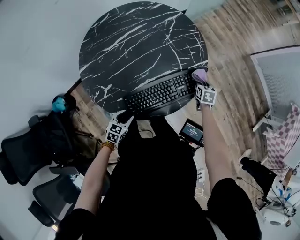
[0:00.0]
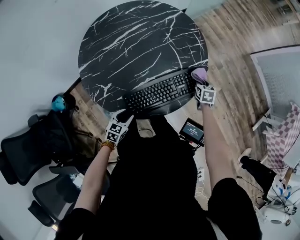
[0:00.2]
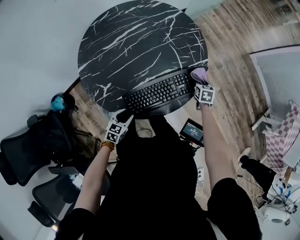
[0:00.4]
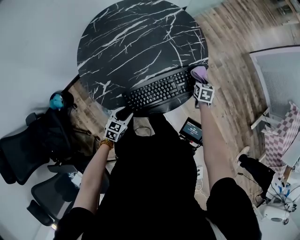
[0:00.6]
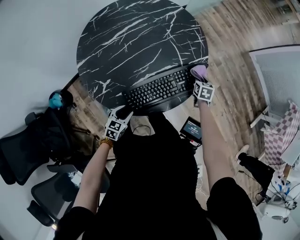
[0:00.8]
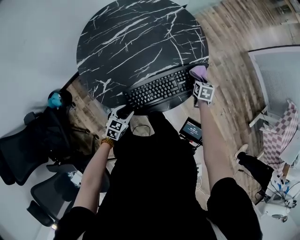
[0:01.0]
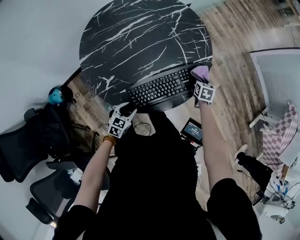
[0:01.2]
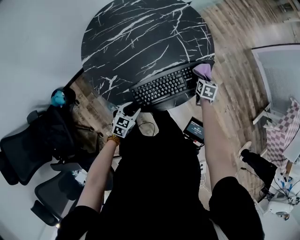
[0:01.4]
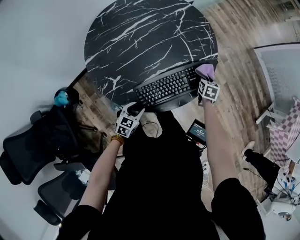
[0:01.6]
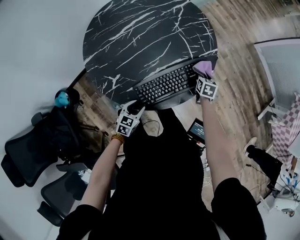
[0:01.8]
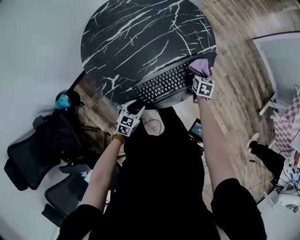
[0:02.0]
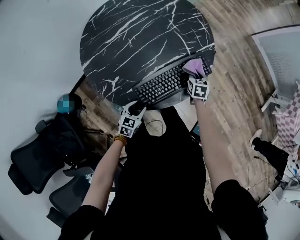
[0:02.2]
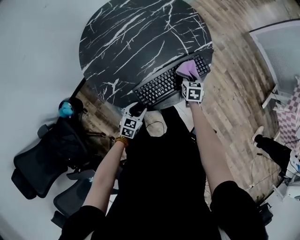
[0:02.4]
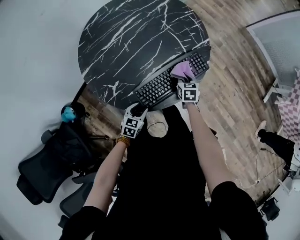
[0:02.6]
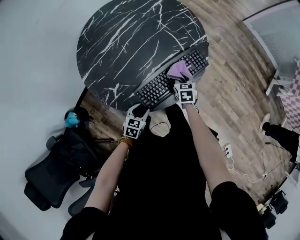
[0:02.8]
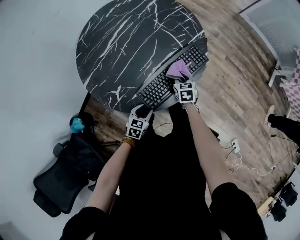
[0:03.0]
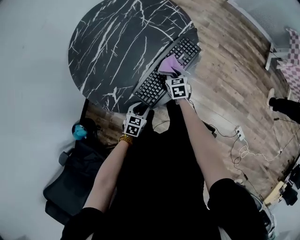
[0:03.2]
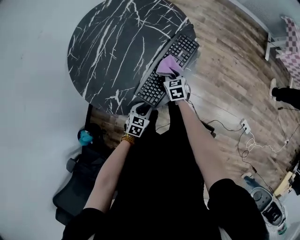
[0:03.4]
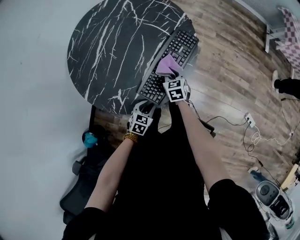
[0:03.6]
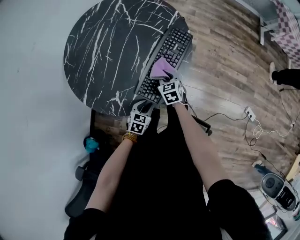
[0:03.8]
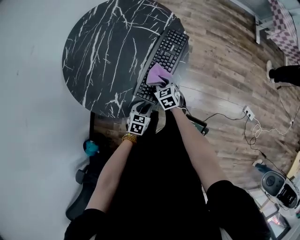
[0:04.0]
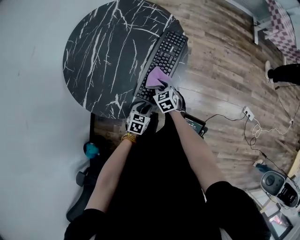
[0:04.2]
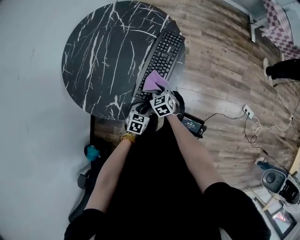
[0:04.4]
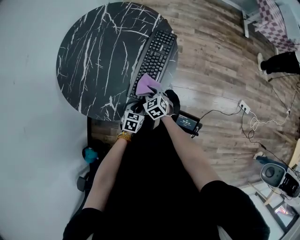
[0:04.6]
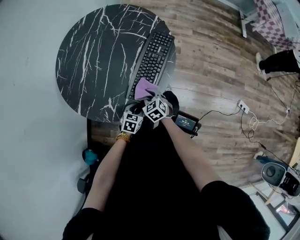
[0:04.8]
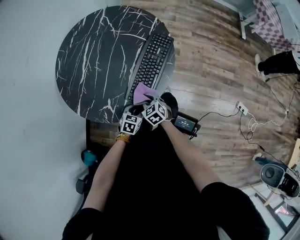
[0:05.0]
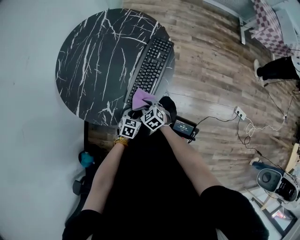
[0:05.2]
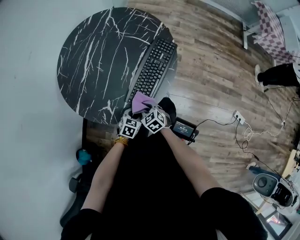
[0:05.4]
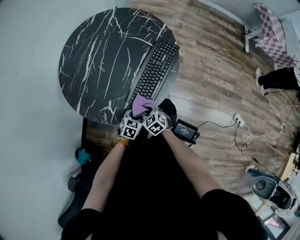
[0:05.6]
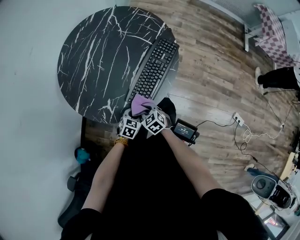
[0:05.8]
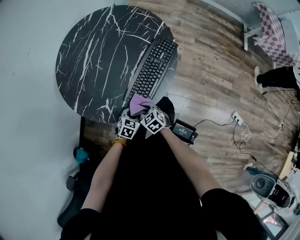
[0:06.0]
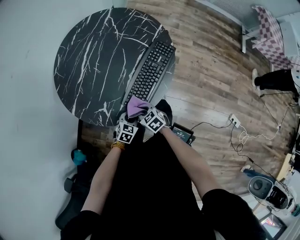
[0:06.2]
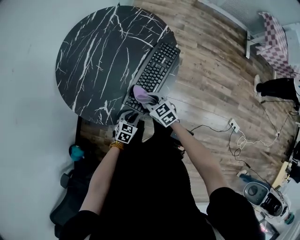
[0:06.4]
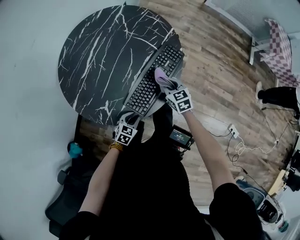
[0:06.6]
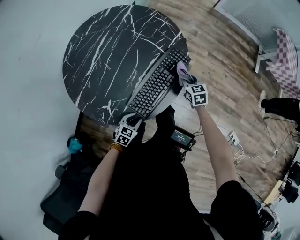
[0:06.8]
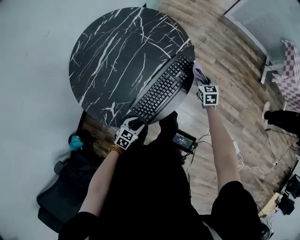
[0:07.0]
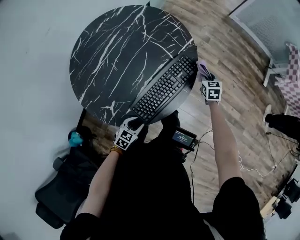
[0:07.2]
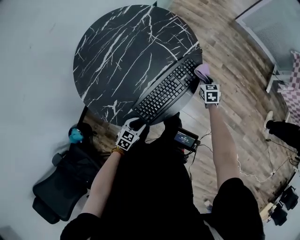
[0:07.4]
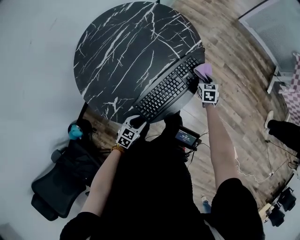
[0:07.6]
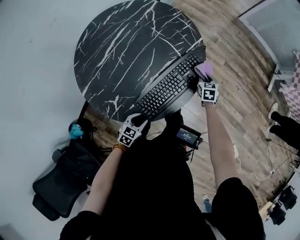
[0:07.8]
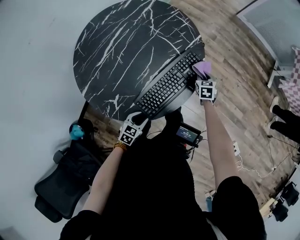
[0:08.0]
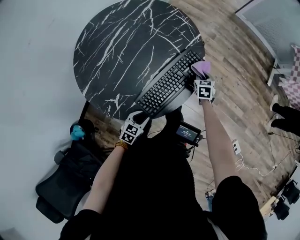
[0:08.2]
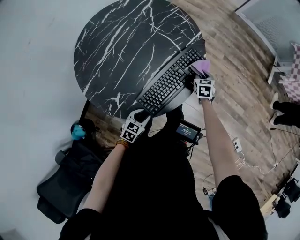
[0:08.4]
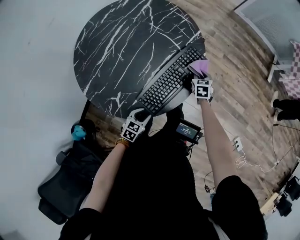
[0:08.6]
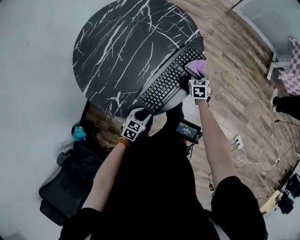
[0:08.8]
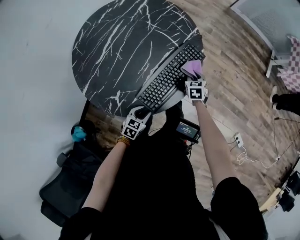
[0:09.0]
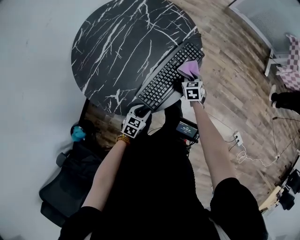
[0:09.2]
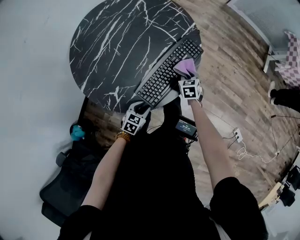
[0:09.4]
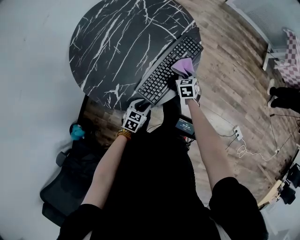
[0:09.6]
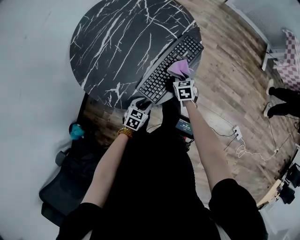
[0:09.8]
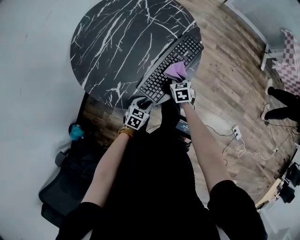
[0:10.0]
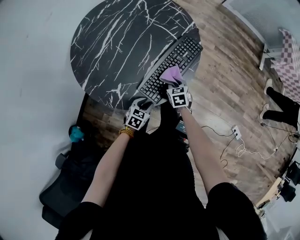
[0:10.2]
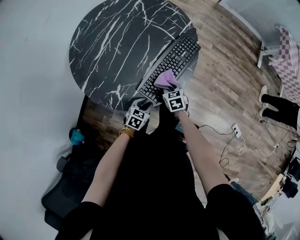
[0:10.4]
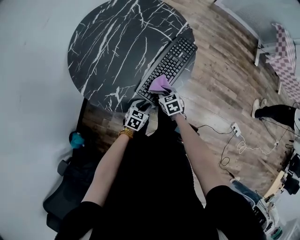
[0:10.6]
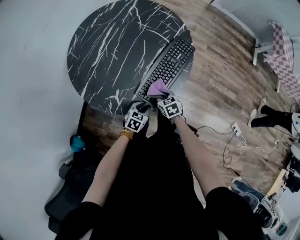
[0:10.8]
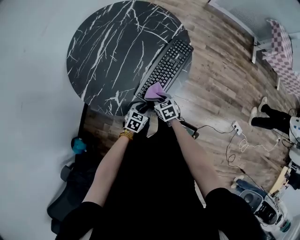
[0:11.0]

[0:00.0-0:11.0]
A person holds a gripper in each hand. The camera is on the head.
0.0 to 1.6 s: There are only small adjustments of the grippers.
1.6 to 3.2 s: The right gripper shifts roughly 20 cm backward and to the left; the left gripper rotates about 20 degrees.
3.2 to 4.8 s: The right gripper shifts about 15 cm backward.
4.8 to 6.2 s: The right gripper is displaced backward by roughly 5 cm, and turns by about 20 degrees.
6.2 to 7.8 s: The right gripper moves forward and to the right, roughly 40 cm, and turns by some 30 degrees.
7.8 to 9.4 s: The right gripper shifts approximately 15 cm backward and to the left.
9.4 to 11.0 s: The right gripper is displaced backward and to the left by approximately 20 cm.

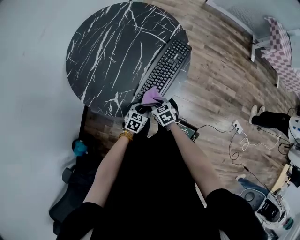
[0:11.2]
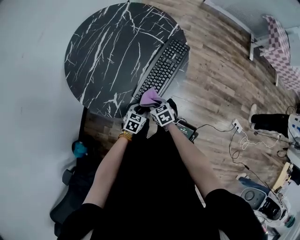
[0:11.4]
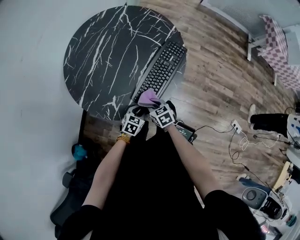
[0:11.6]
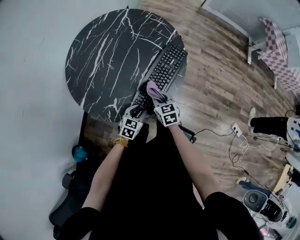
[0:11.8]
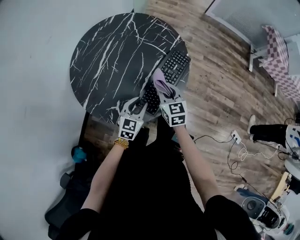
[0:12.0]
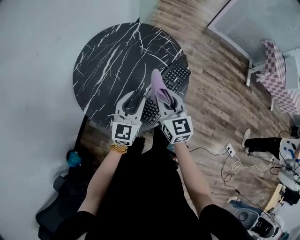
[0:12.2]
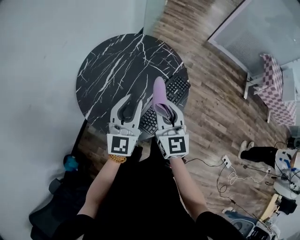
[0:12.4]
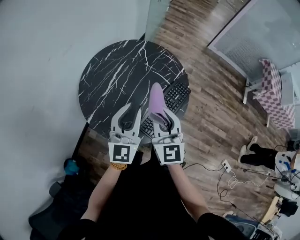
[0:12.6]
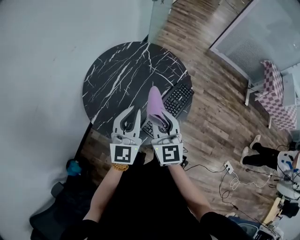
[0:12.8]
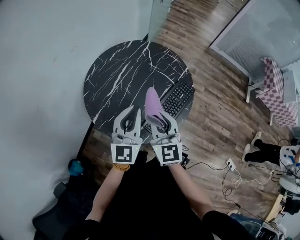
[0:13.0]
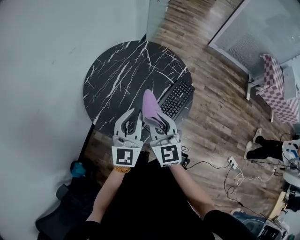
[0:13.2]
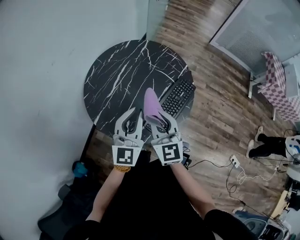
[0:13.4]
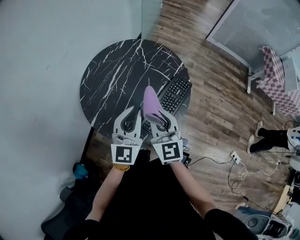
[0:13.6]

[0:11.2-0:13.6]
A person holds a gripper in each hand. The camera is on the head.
11.2 to 12.4 s: Both grippers travel together upward, roughly 40 cm. The right gripper points its fingers roughly 50 degrees further upward. Meanwhile the left gripper tips its fingers upward by about 50 degrees.

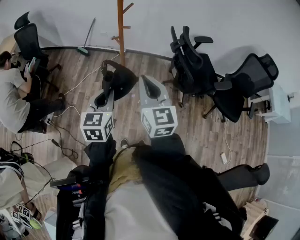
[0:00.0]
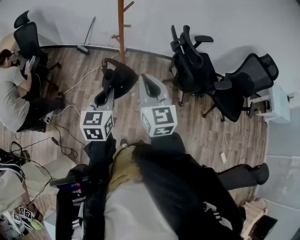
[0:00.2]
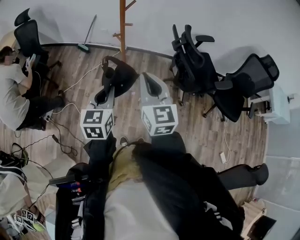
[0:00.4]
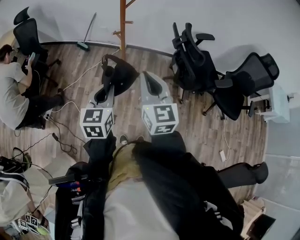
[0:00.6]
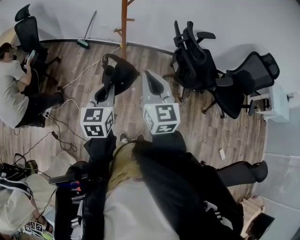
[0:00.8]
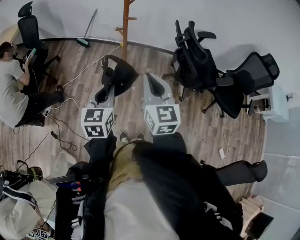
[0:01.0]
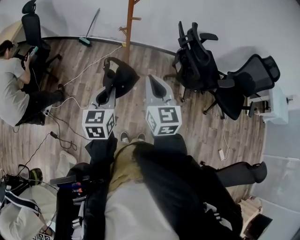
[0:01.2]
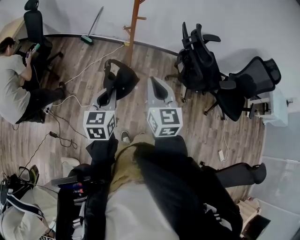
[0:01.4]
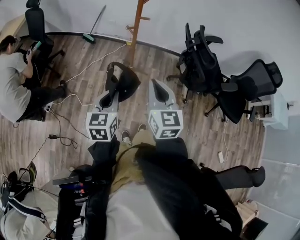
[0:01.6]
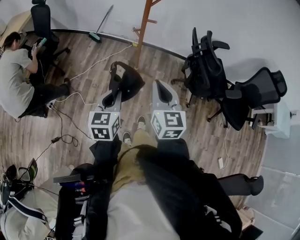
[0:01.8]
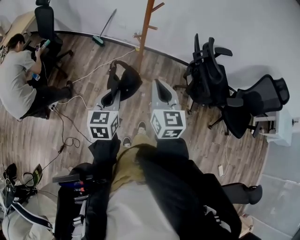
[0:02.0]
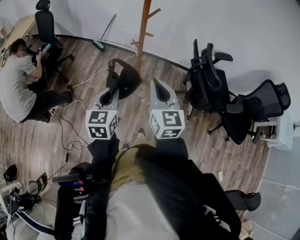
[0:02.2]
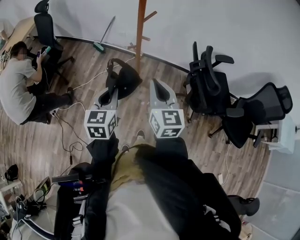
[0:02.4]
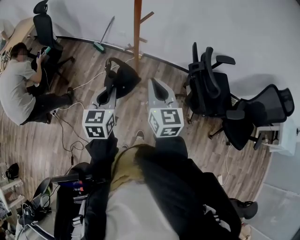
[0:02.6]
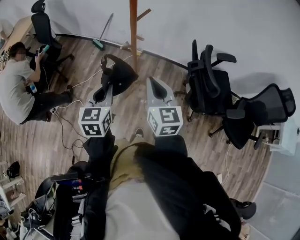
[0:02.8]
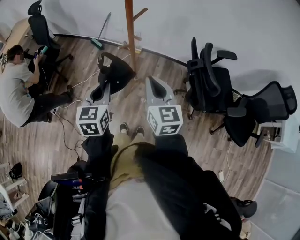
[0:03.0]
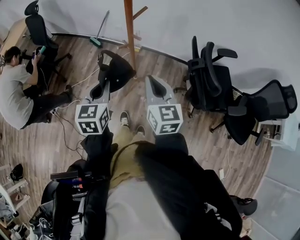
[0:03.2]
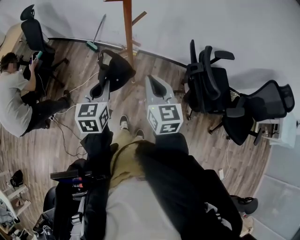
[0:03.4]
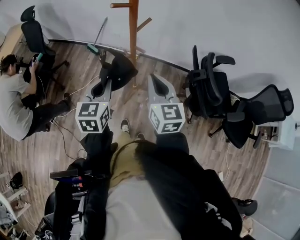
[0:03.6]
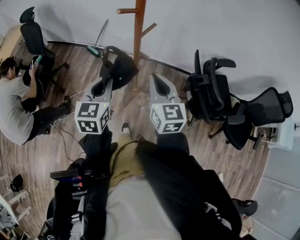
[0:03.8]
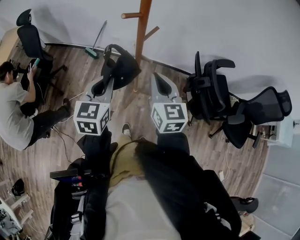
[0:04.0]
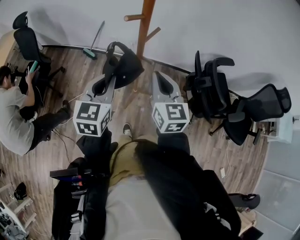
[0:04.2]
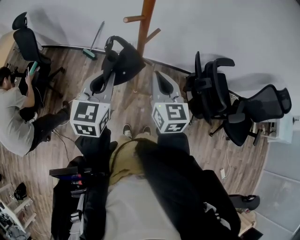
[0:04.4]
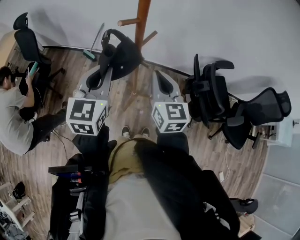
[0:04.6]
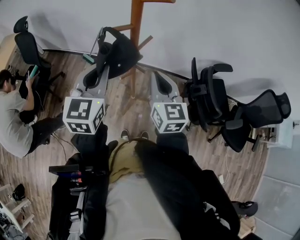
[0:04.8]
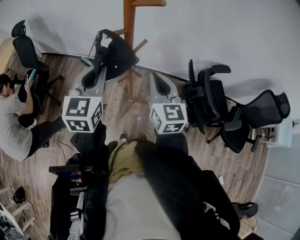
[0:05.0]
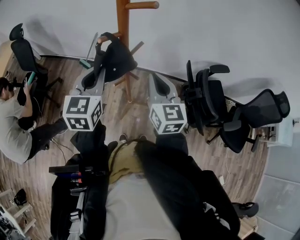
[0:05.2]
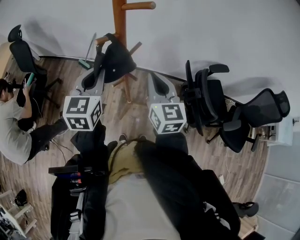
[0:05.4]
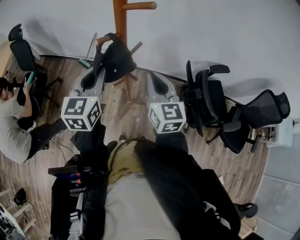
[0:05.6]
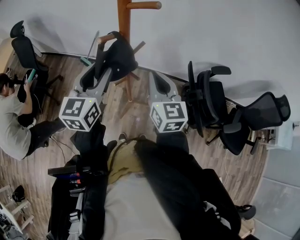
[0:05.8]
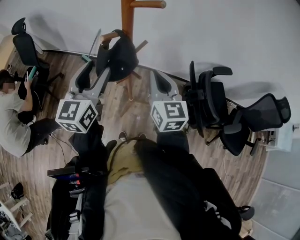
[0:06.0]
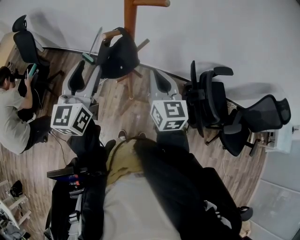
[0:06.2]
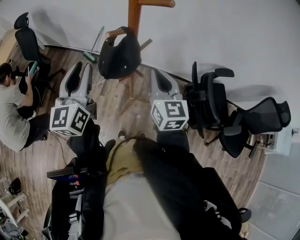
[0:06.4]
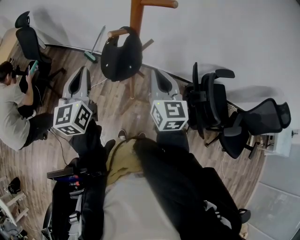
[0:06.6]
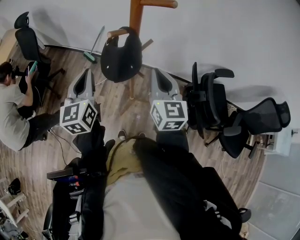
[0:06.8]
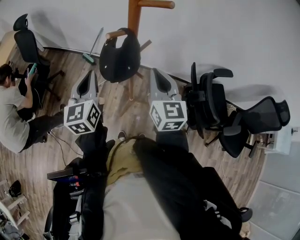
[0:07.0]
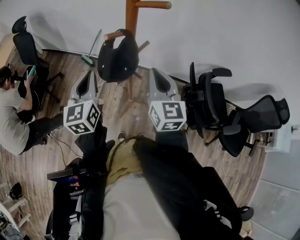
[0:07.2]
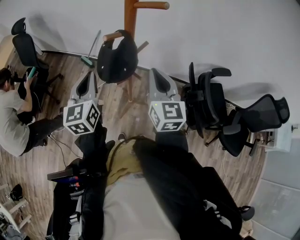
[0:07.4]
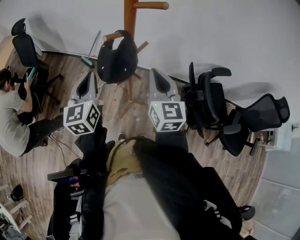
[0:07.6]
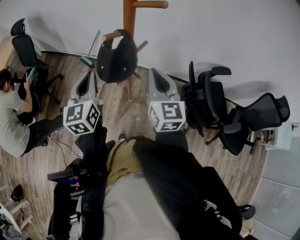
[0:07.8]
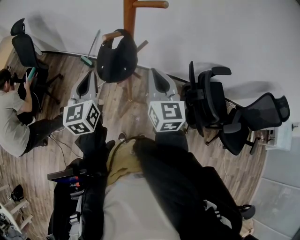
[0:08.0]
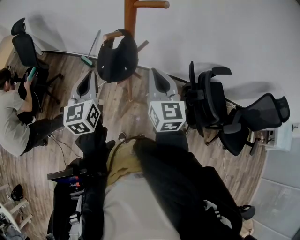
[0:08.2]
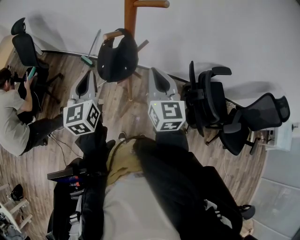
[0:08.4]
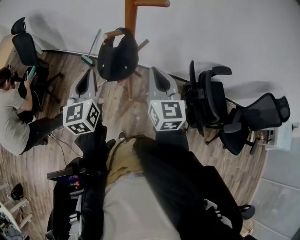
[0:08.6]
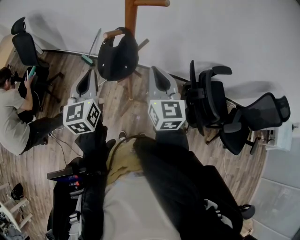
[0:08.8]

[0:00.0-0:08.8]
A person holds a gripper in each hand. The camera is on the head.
0.0 to 1.4 s: The right gripper changes place by some 5 cm. Meanwhile the left gripper shifts by about 5 cm.
1.4 to 3.0 s: The grippers both shift forward by some 20 cm.
3.0 to 4.4 s: The left gripper heads forward and upward, covering some 15 cm. Meanwhile the right gripper shifts about 15 cm forward.
4.4 to 5.8 s: Both grippers travel together forward, approximately 5 cm. The left gripper opens.
5.8 to 7.4 s: The left gripper moves to the left, some 5 cm, and closes its fingers.
7.4 to 8.8 s: Both grippers stay put.

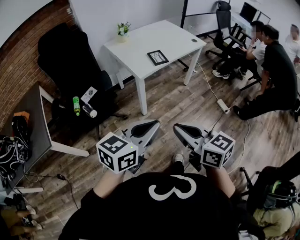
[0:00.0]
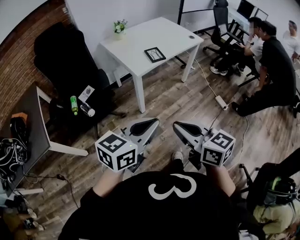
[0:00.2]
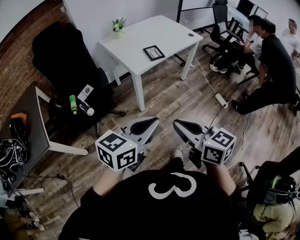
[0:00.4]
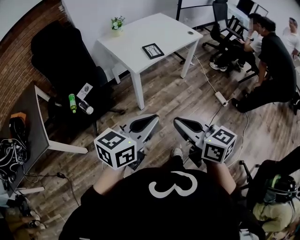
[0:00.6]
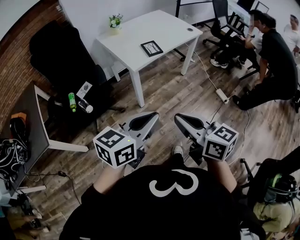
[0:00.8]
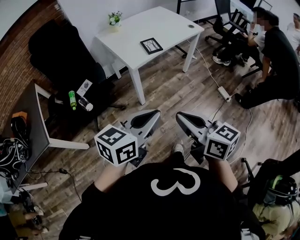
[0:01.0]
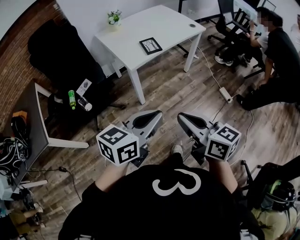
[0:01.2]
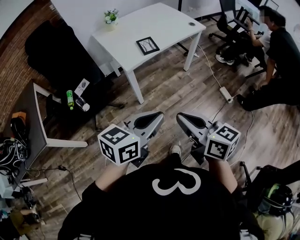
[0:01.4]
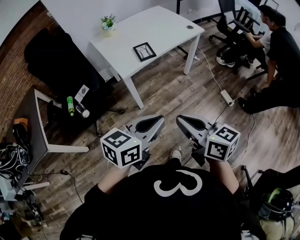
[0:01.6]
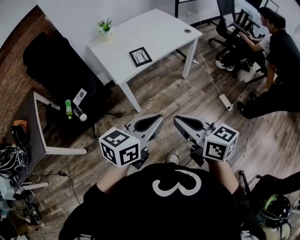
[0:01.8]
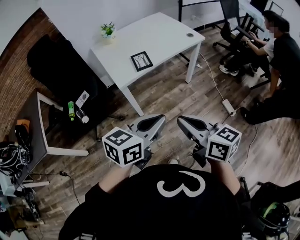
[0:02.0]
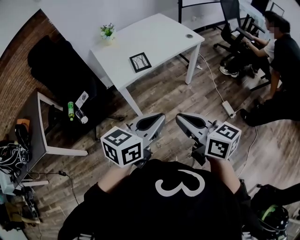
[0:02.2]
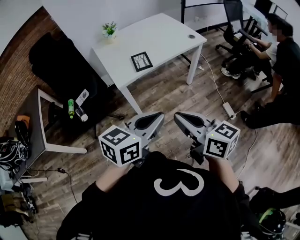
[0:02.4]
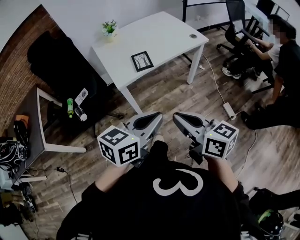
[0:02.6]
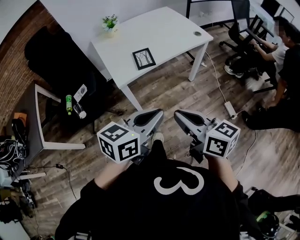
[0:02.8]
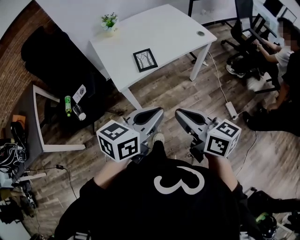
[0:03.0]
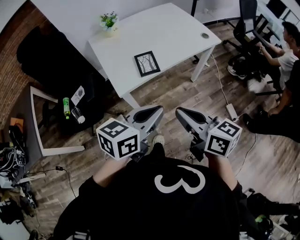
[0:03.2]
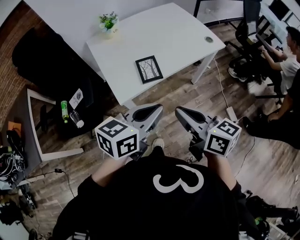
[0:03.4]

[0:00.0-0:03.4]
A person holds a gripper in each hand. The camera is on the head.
0.0 to 1.6 s: Both grippers travel together to the right and forward, some 15 cm.
1.6 to 3.4 s: The two grippers go approximately 25 cm forward.
